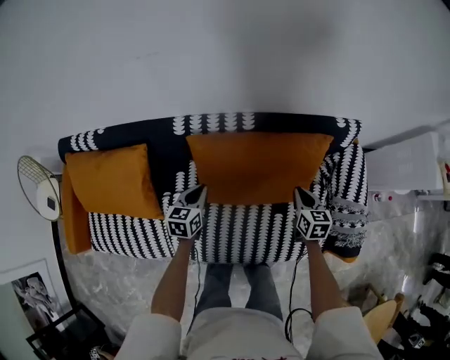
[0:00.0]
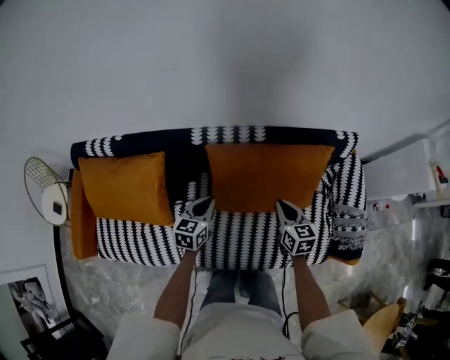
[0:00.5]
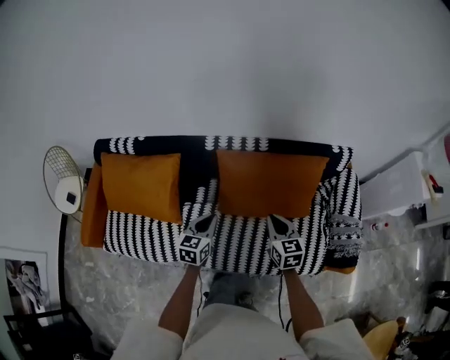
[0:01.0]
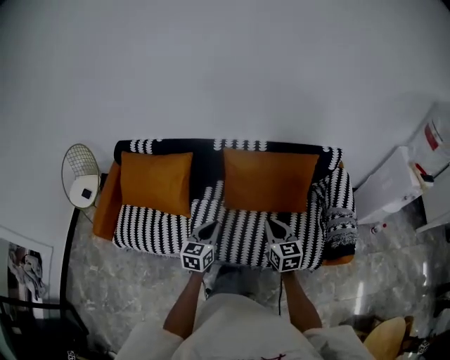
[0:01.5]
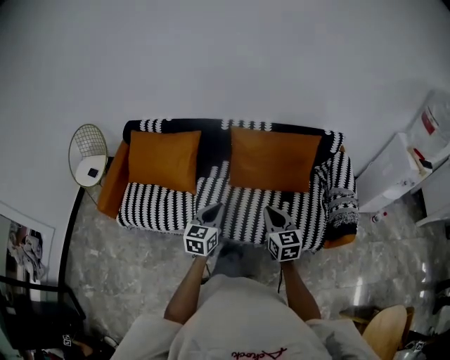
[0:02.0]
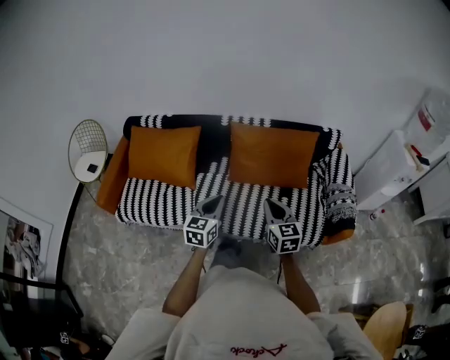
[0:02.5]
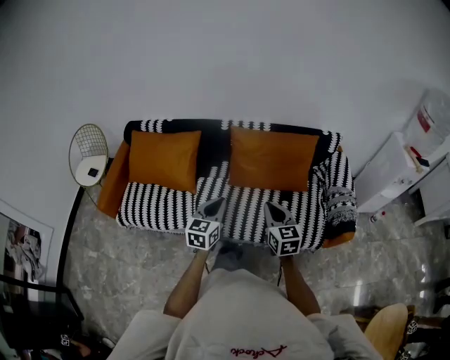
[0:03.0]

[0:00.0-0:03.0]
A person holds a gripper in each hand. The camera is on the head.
0.0 to 1.5 s: The right gripper travels backward, upward and to the left by about 35 cm, and turns by approximately 30 degrees. The left gripper travels backward and upward by roughly 35 cm.
1.5 to 3.0 s: The two grippers go roughly 10 cm backward.

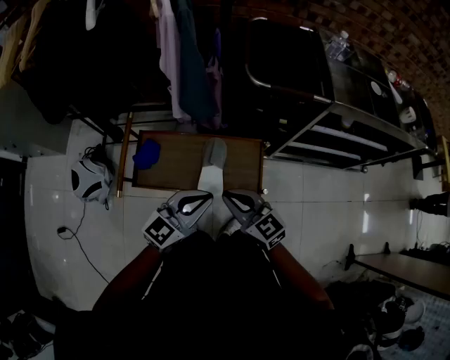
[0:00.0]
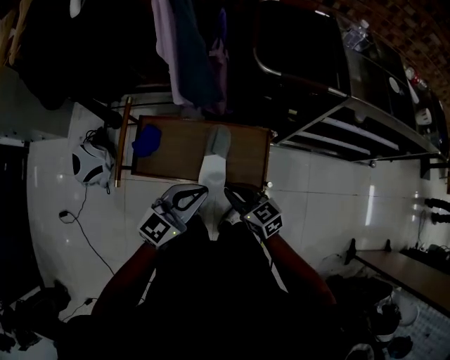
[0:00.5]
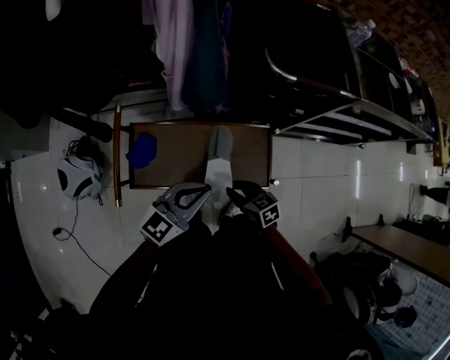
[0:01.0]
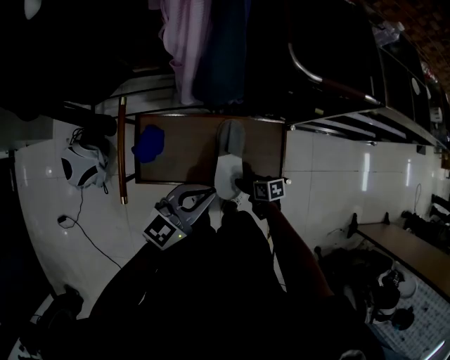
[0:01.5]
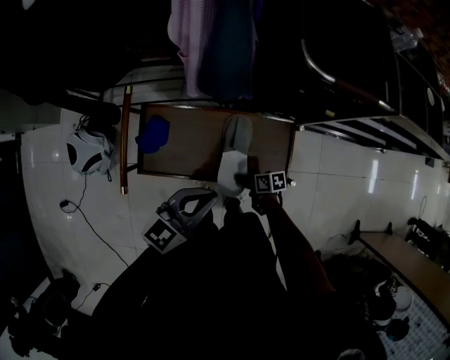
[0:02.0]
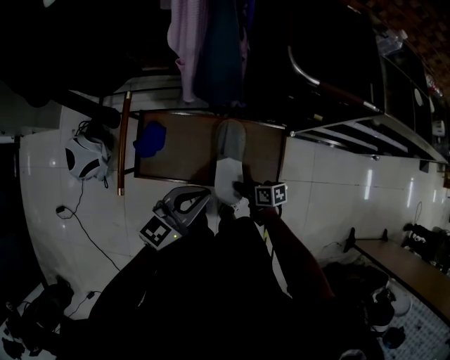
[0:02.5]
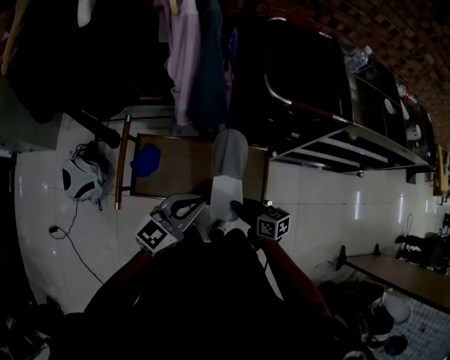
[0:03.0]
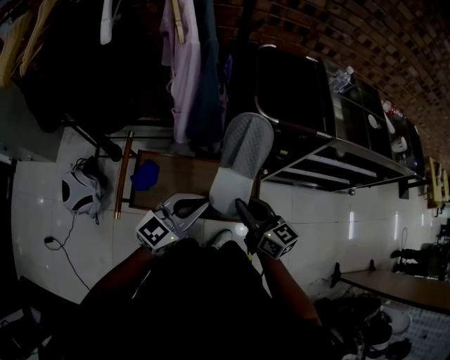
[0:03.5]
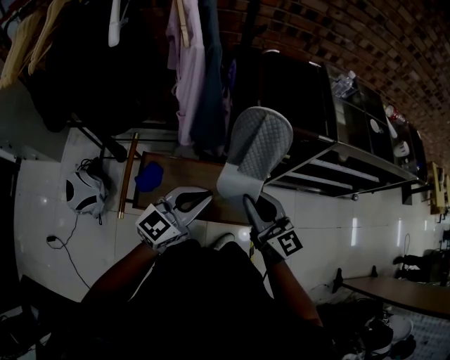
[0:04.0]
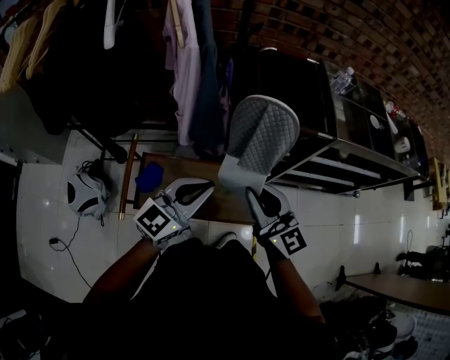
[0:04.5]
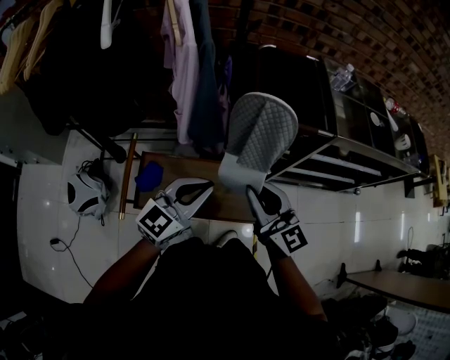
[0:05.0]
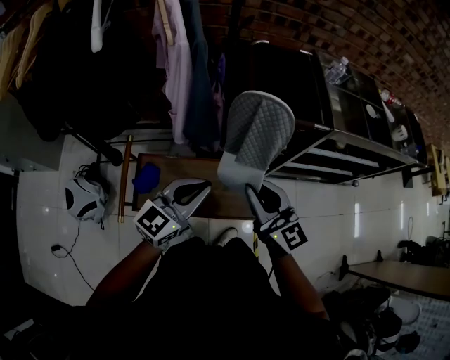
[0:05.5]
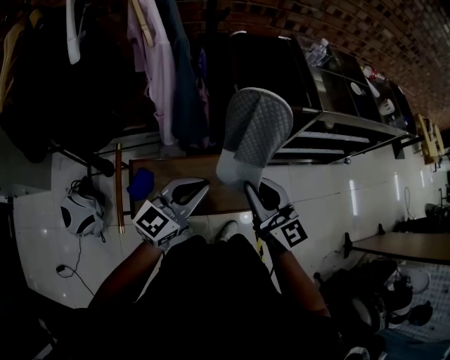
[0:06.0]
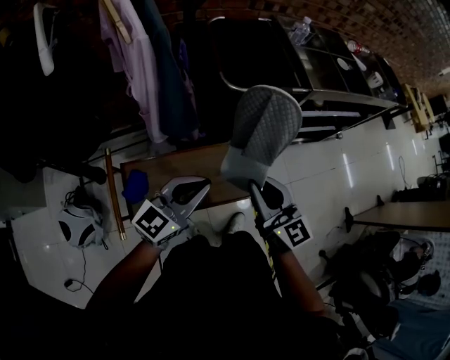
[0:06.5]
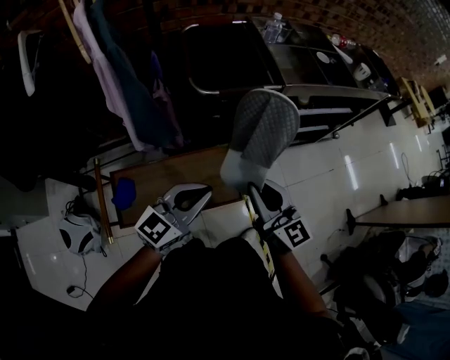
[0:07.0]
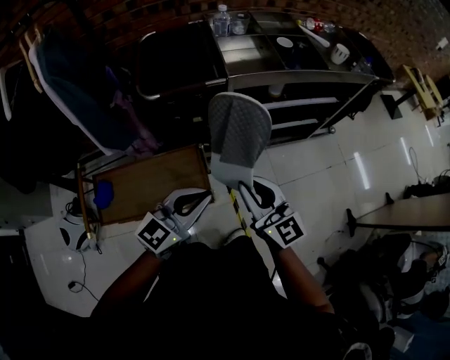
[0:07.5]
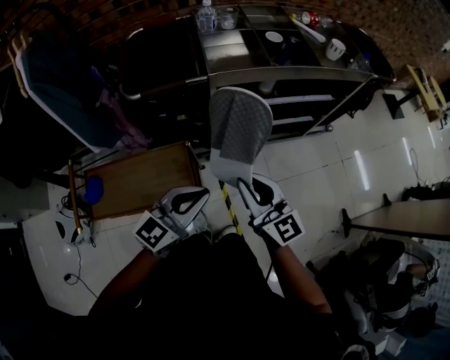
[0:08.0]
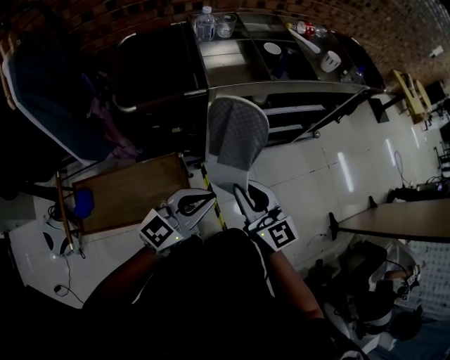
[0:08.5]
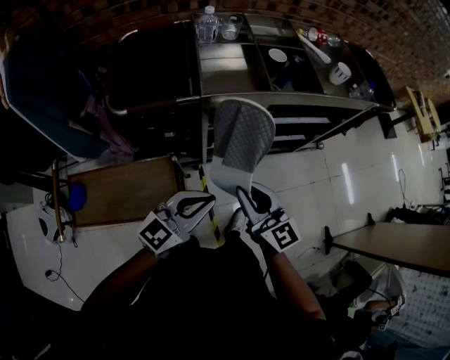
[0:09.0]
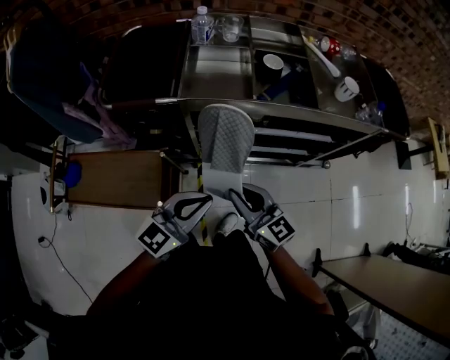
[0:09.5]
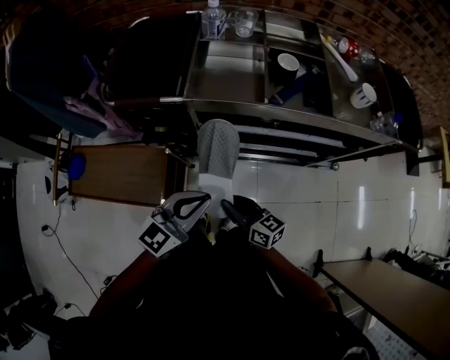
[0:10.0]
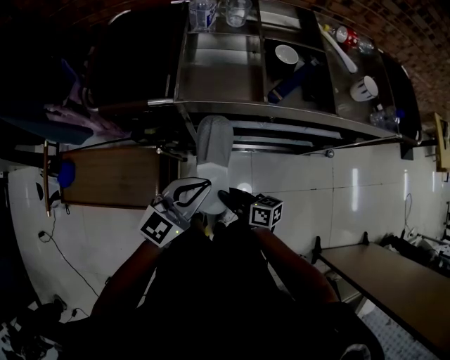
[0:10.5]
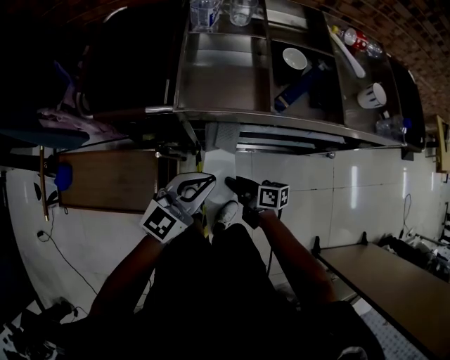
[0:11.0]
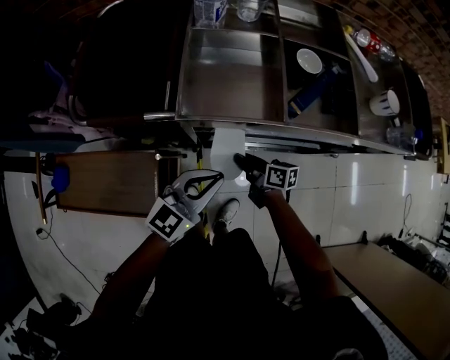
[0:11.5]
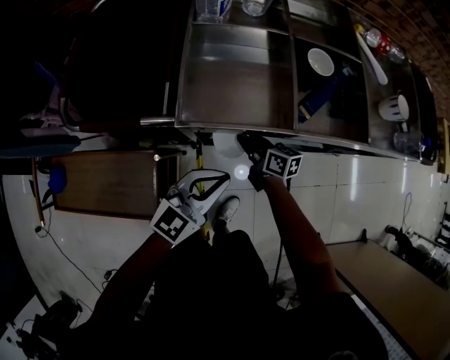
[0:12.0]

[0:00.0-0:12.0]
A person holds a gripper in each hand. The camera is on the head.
0.0 to 2.0 s: The left gripper moves roughly 15 cm; the right gripper moves downward, about 35 cm, twists roughly 60 degrees clockwise, seen from behind, and opens up.
2.0 to 4.0 s: The left gripper goes approximately 15 cm upward; the right gripper travels upward by about 50 cm, and tips its fingers upward by some 40 degrees.
4.0 to 6.0 s: The grippers make only small movements.
6.0 to 8.0 s: The two grippers go some 35 cm to the right.
8.0 to 10.0 s: The left gripper moves approximately 20 cm, while the right gripper heads downward, covering approximately 15 cm, and swivels approximately 40 degrees.
10.0 to 12.0 s: The left gripper moves forward and downward, approximately 15 cm. Meanwhile the right gripper travels forward and downward by about 30 cm.

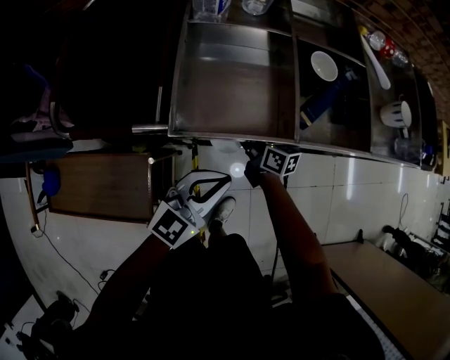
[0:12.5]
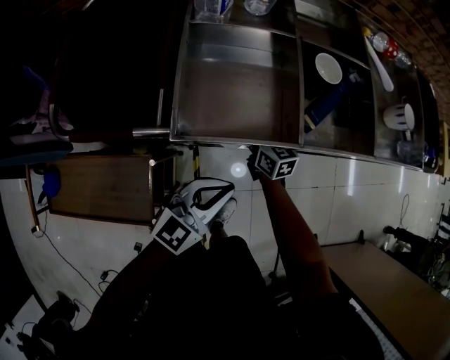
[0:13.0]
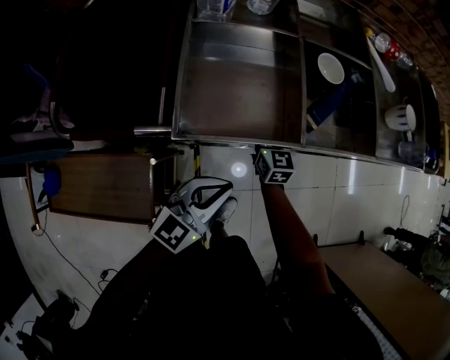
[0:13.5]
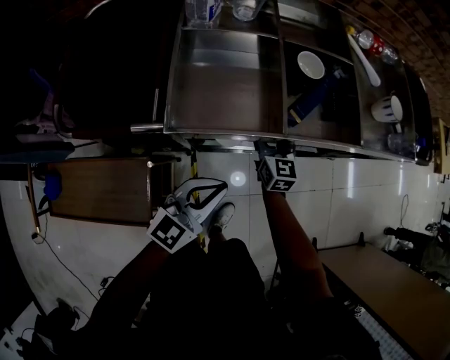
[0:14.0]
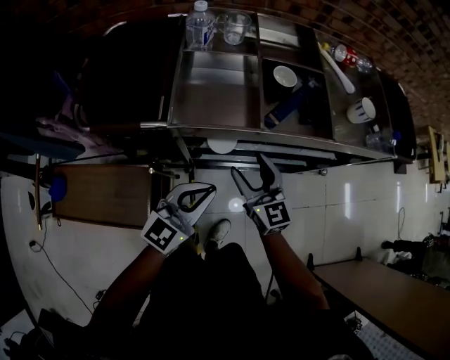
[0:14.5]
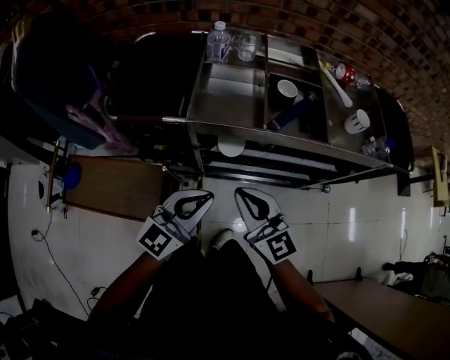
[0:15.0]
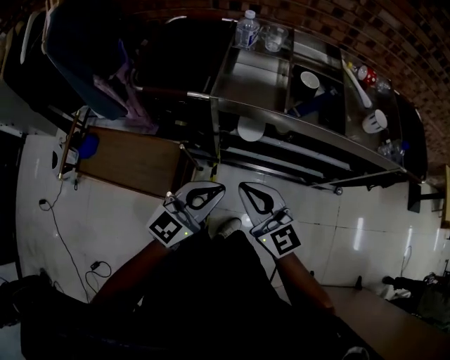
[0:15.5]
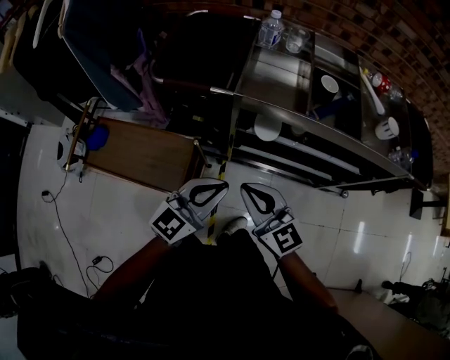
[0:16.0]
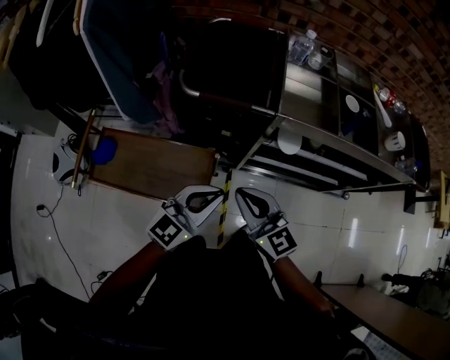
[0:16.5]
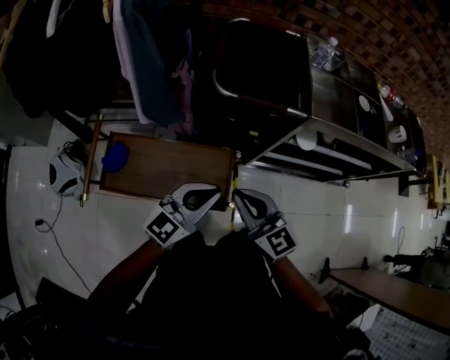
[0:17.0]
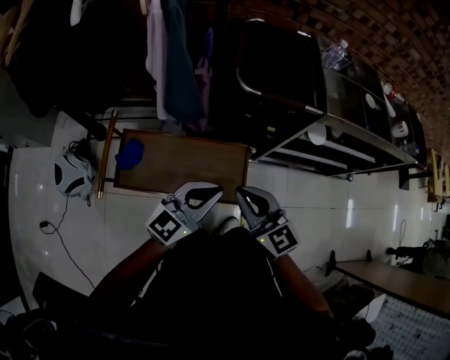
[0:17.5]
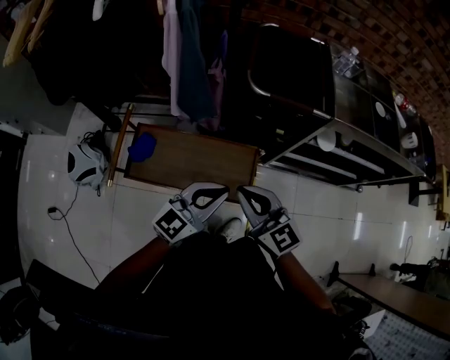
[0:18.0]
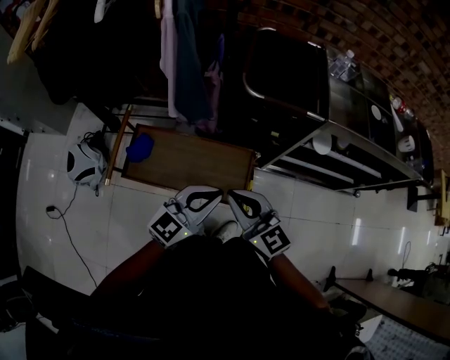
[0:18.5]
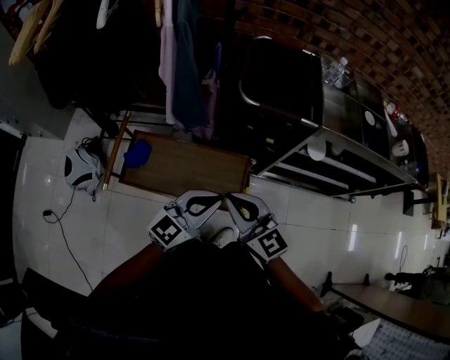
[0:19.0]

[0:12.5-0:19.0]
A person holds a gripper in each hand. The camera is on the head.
12.5 to 14.5 s: The right gripper goes about 20 cm upward and backward, rolls counterclockwise, seen from behind, by roughly 40 degrees, and opens, while the left gripper travels upward and backward by roughly 10 cm.
14.5 to 17.0 s: The right gripper moves to the left and backward, some 40 cm, and closes its fingers; the left gripper is displaced to the left by roughly 35 cm.
17.0 to 19.0 s: The right gripper travels to the left by some 10 cm. Meanwhile the left gripper heads backward, covering roughly 5 cm.

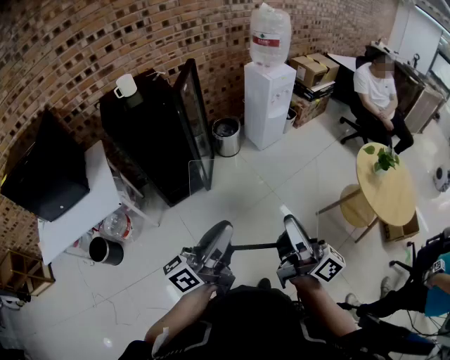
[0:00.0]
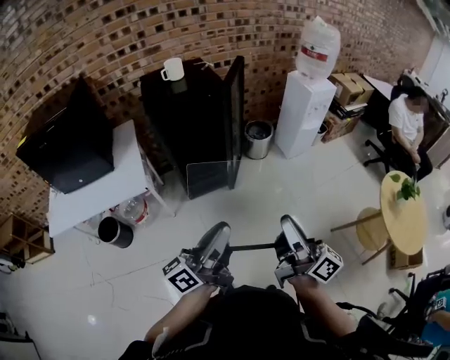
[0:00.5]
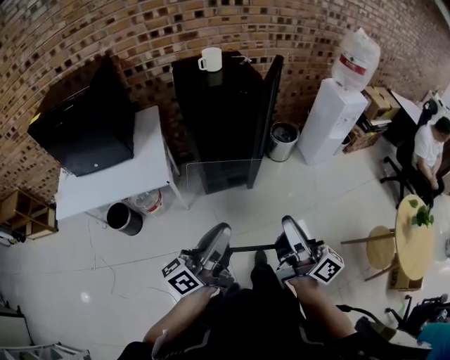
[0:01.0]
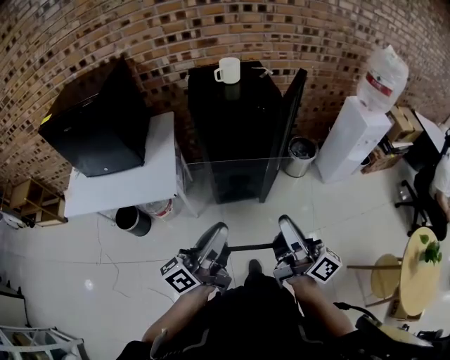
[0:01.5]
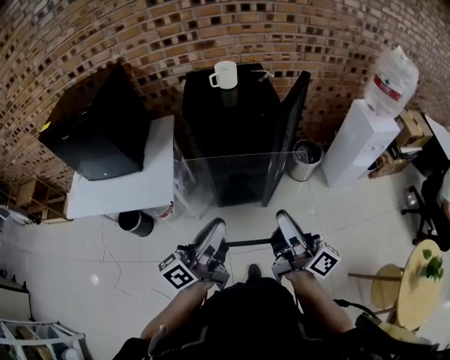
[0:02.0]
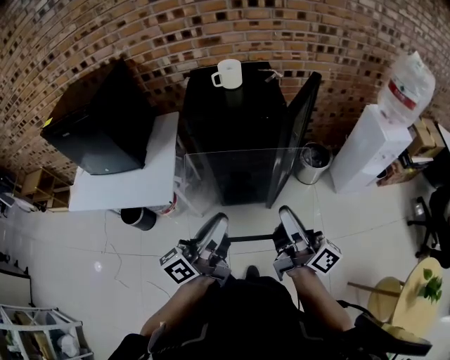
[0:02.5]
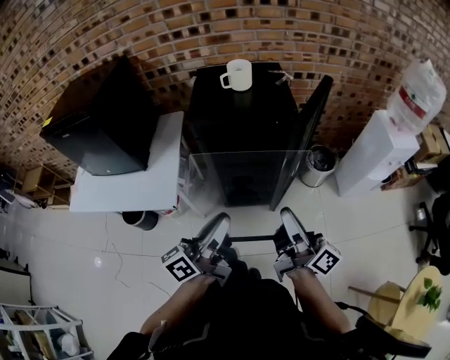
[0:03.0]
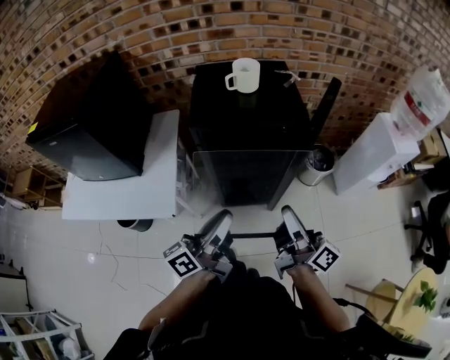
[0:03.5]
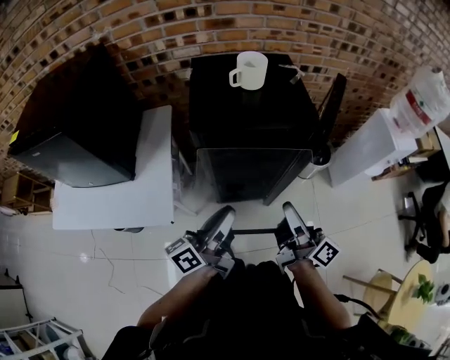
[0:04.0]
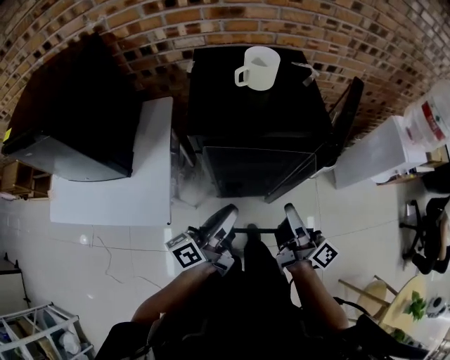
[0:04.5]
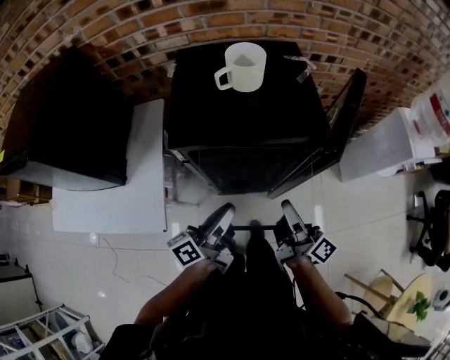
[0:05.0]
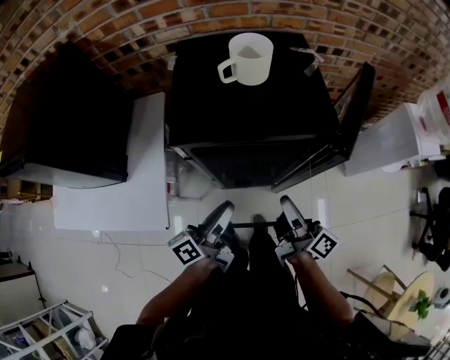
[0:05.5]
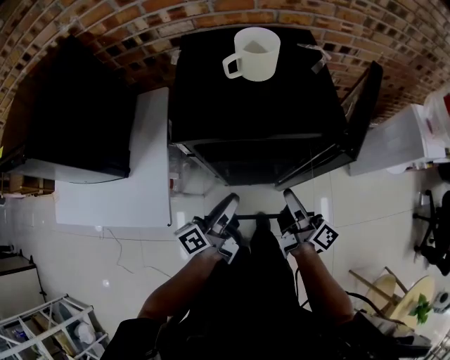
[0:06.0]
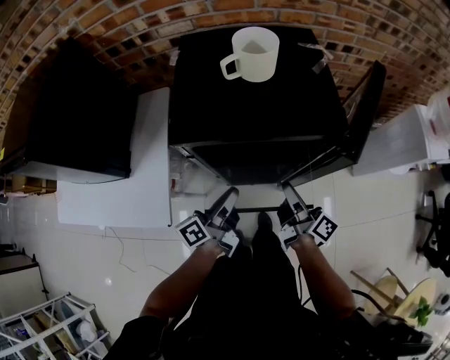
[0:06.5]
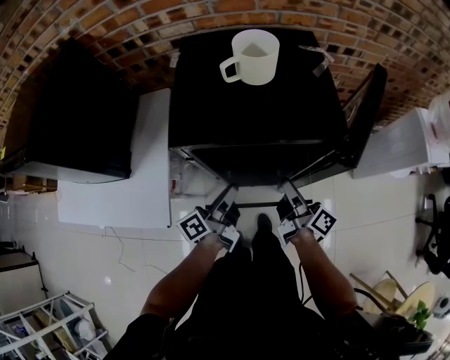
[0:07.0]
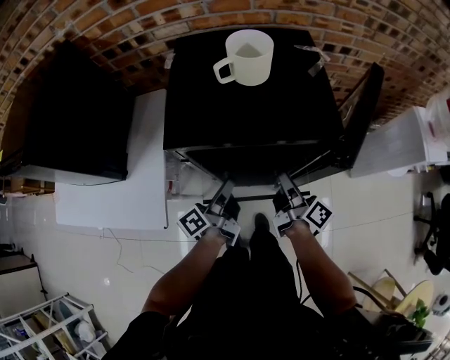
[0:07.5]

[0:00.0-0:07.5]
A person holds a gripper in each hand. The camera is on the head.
0.0 to 2.0 s: The left gripper ends up roughly 30 cm from where it was, and turns by some 30 degrees. Meanwhile the right gripper shifts by roughly 35 cm, and changes its angle by some 30 degrees.
2.0 to 4.0 s: The left gripper travels forward and downward by about 20 cm. The right gripper goes approximately 20 cm forward.
4.0 to 5.5 s: The two grippers go some 15 cm forward and downward.
5.5 to 7.5 s: The two grippers go roughly 10 cm forward and downward.
